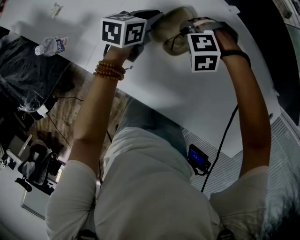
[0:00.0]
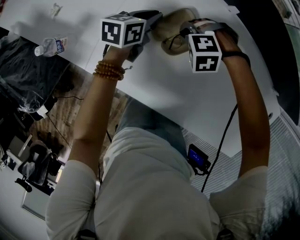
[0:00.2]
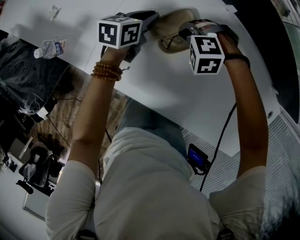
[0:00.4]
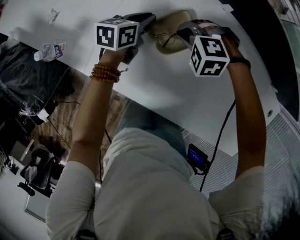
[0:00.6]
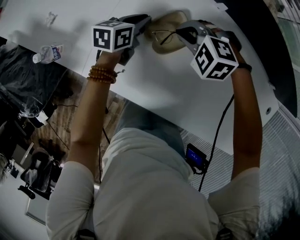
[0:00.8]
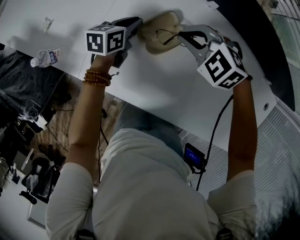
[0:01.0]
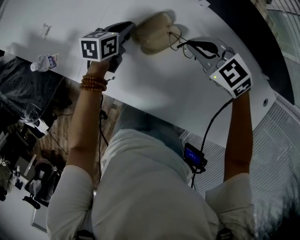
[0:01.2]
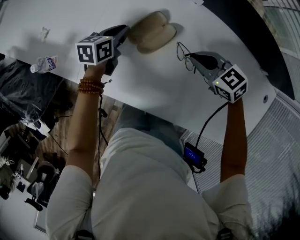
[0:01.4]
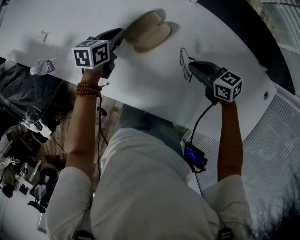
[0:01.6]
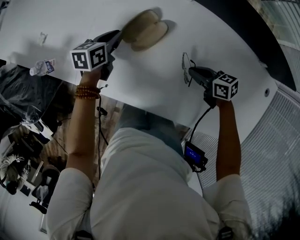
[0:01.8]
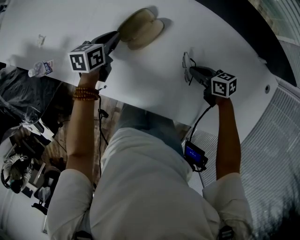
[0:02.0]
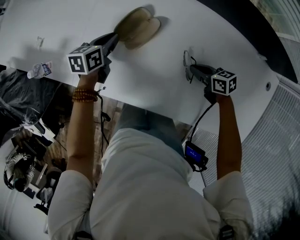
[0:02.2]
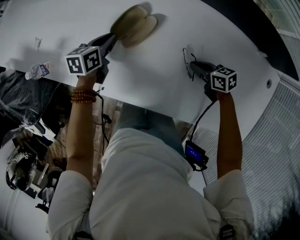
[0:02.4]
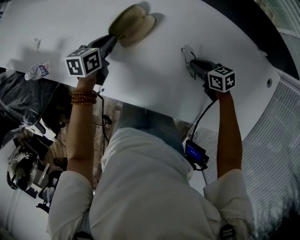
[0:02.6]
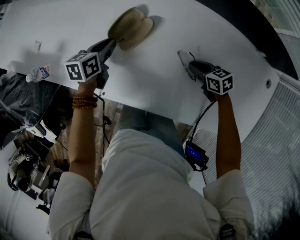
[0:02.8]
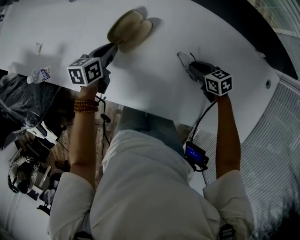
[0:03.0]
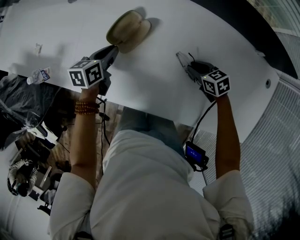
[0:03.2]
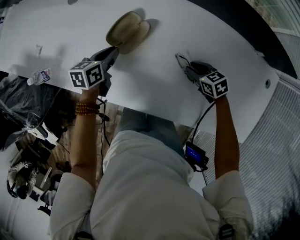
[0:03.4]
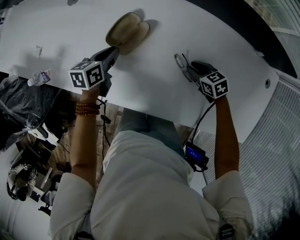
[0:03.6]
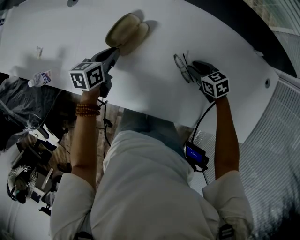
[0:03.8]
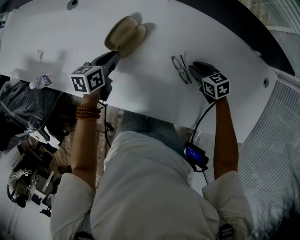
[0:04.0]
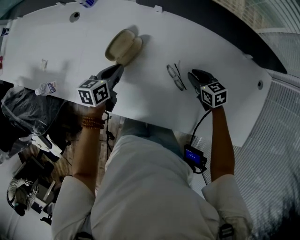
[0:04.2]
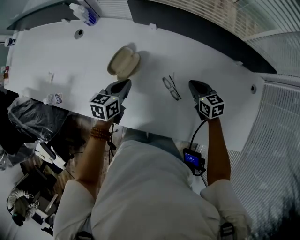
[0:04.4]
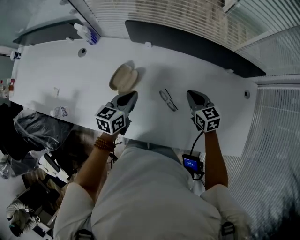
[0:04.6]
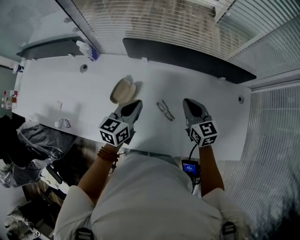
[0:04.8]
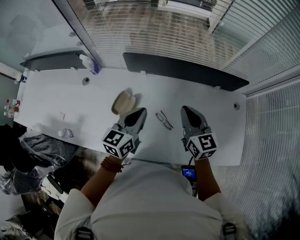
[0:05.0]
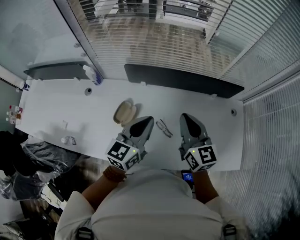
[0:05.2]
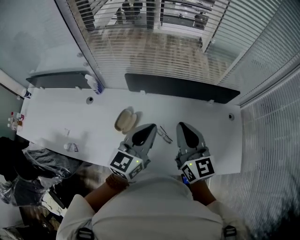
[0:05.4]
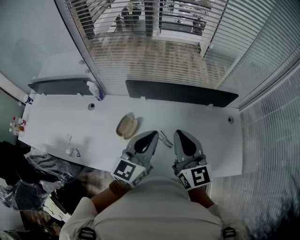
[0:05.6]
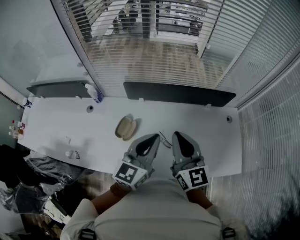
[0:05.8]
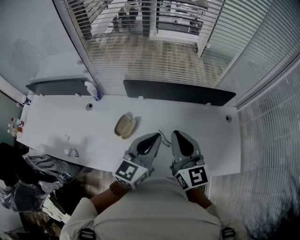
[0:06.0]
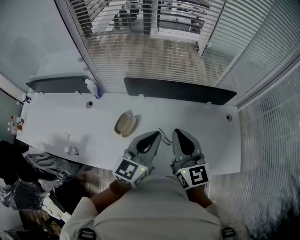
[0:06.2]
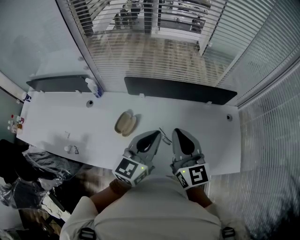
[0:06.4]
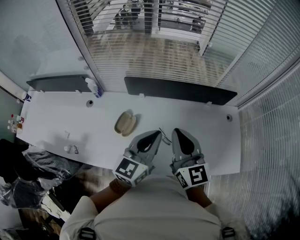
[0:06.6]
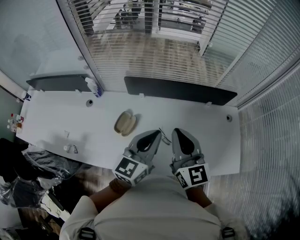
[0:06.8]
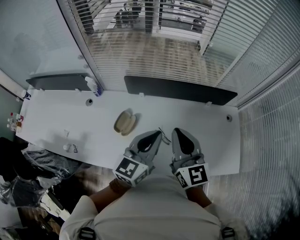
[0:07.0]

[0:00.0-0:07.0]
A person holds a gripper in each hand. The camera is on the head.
0:00.0 to 0:01.4: The right gripper moves about 20 cm, and twists some 70 degrees clockwise, seen from behind.
0:01.4 to 0:02.8: The left gripper goes some 5 cm backward; the right gripper shifts roughly 20 cm downward, backward and to the right, and changes its angle by approximately 30 degrees.
0:02.8 to 0:04.2: The right gripper shifts by about 5 cm. The left gripper ends up some 5 cm from where it was.
0:04.2 to 0:05.6: The left gripper heads upward and to the right, covering roughly 40 cm, and angles its fingers upward, by about 40 degrees; the right gripper goes about 40 cm upward, points its fingers approximately 50 degrees further upward, and closes its fingers.
0:05.6 to 0:07.0: The grippers make only small movements.

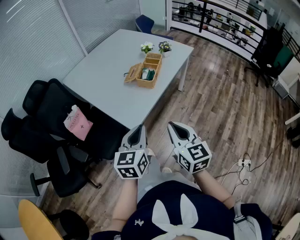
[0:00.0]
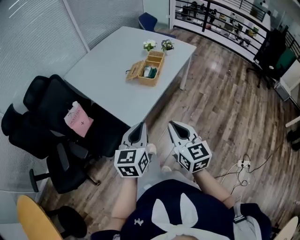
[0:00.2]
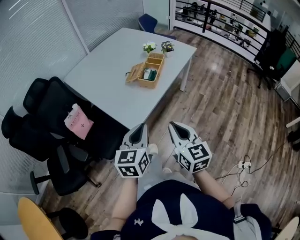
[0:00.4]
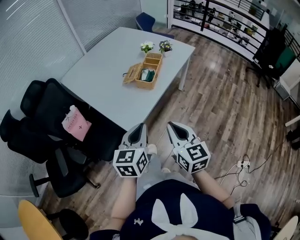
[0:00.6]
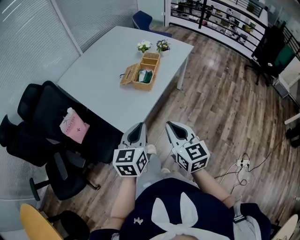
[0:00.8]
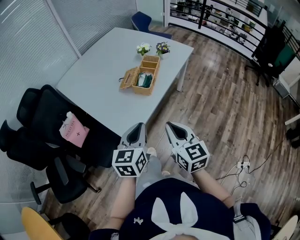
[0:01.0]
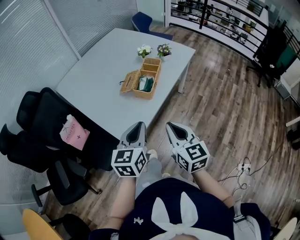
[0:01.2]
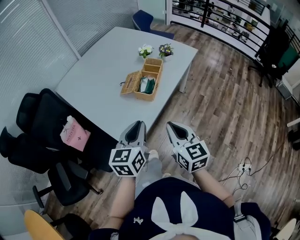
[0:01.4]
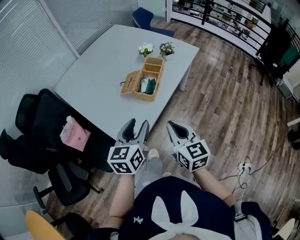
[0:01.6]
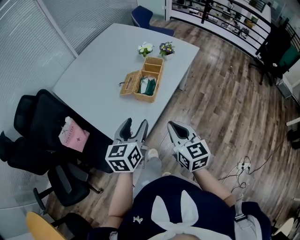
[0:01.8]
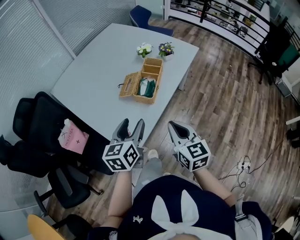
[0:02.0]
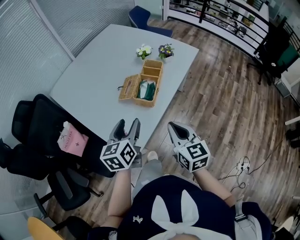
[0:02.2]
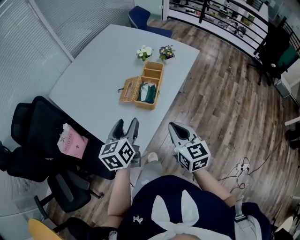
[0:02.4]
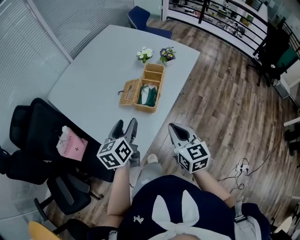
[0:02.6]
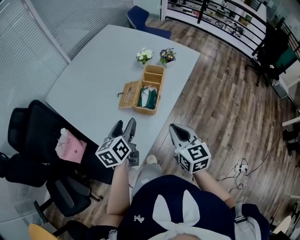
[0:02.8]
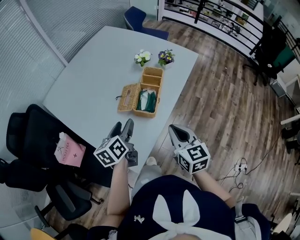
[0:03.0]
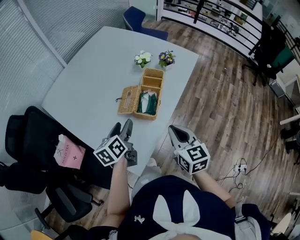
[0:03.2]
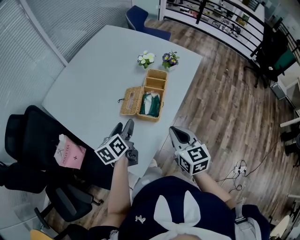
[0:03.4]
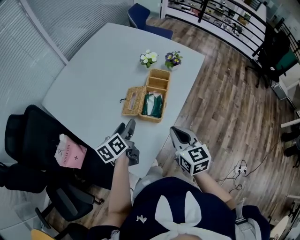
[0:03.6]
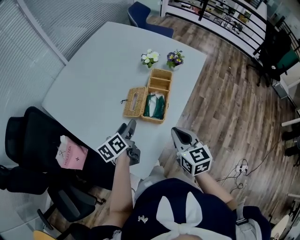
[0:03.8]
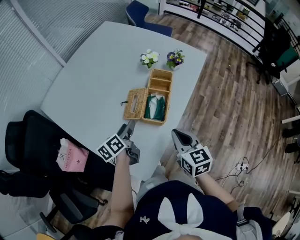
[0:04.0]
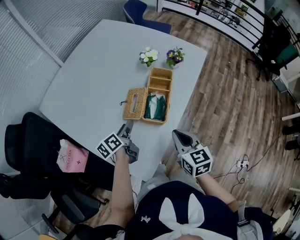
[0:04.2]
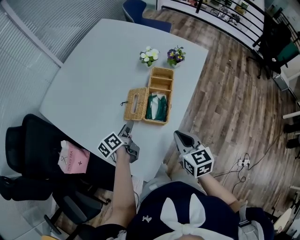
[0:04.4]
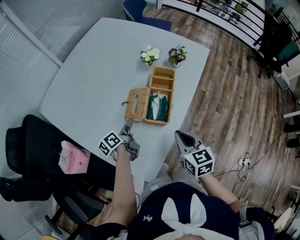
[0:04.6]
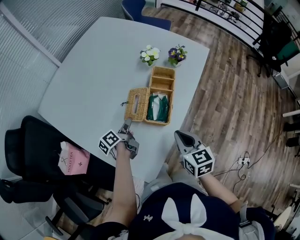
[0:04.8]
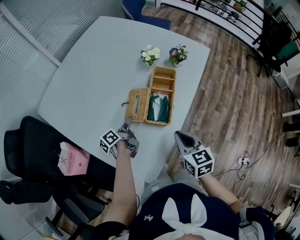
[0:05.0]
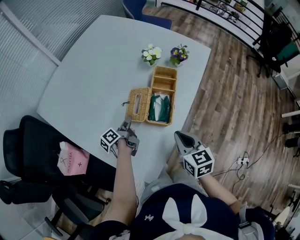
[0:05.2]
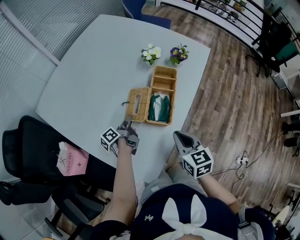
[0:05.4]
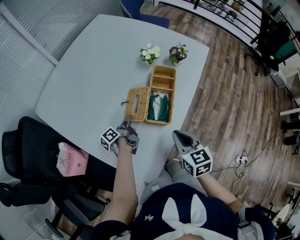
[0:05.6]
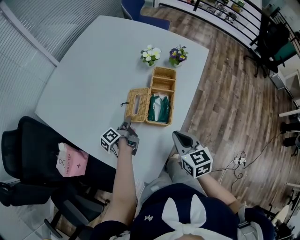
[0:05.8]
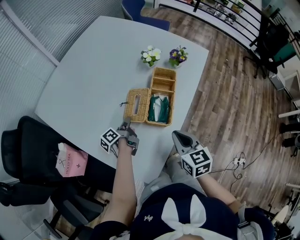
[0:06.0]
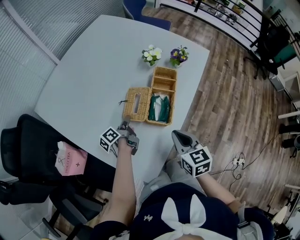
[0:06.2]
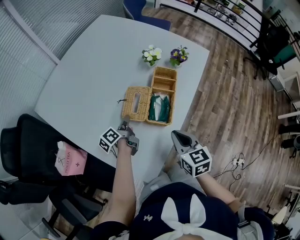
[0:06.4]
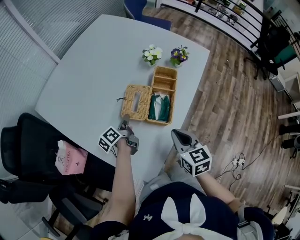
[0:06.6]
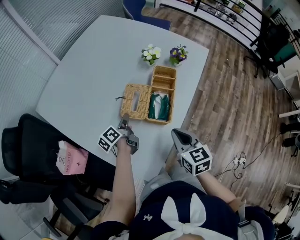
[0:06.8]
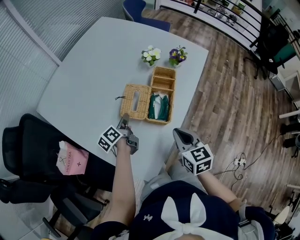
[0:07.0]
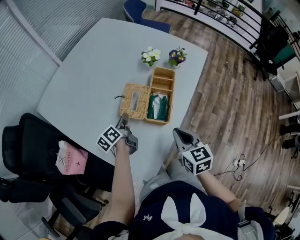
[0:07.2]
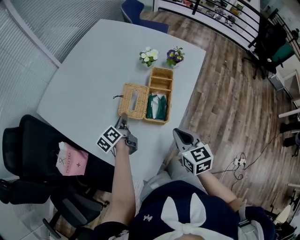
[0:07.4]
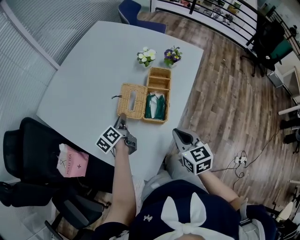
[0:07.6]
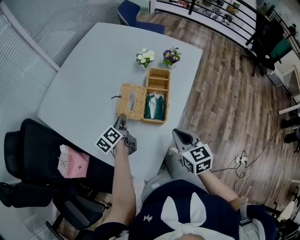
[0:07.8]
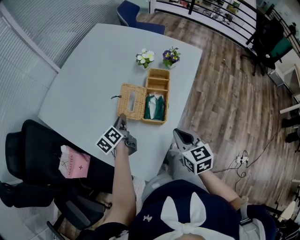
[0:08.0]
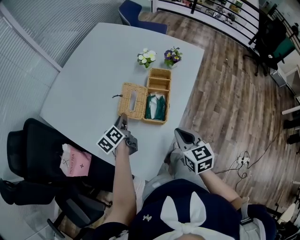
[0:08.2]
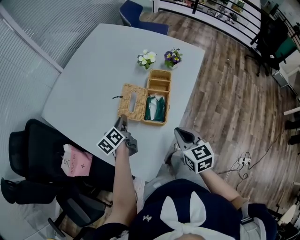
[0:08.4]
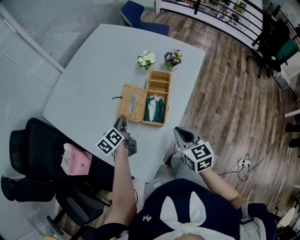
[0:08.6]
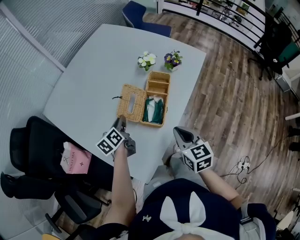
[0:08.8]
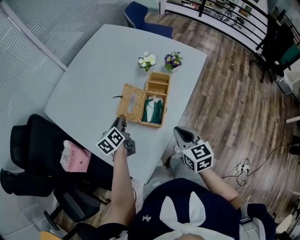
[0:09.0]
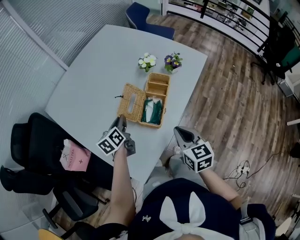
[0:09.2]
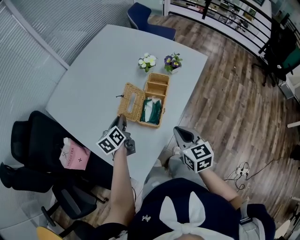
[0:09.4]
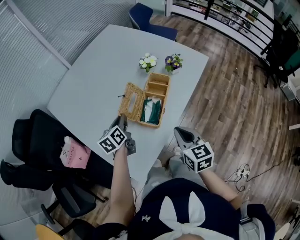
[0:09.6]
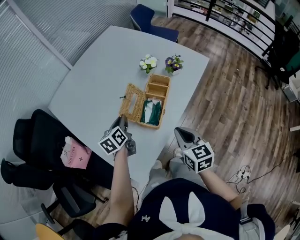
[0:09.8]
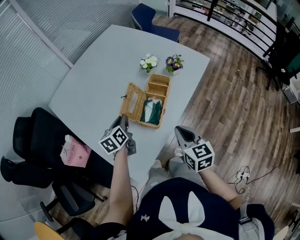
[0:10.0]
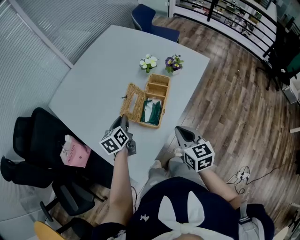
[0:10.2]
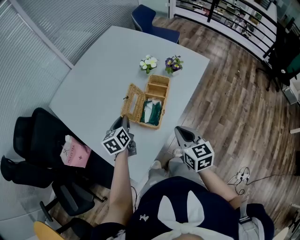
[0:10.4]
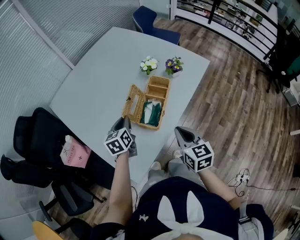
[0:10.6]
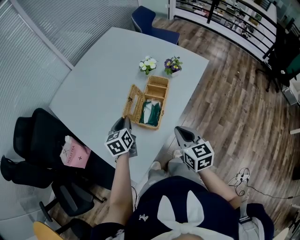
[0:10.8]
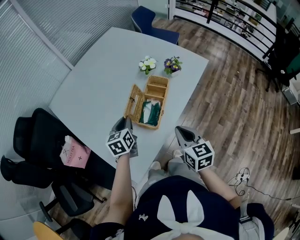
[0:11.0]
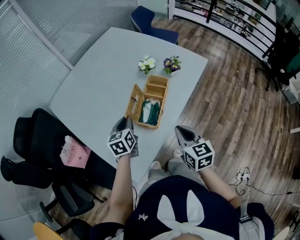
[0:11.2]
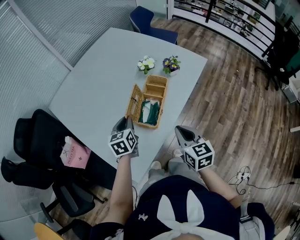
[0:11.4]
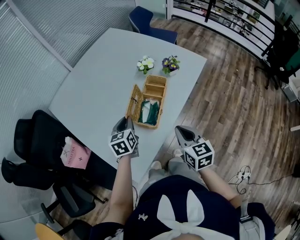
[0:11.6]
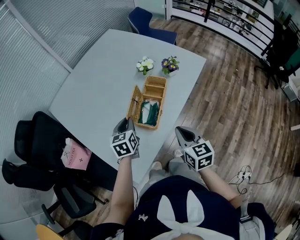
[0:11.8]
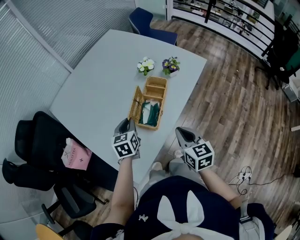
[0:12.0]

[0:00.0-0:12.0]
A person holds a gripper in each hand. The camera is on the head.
0:00.0 to 0:01.6: The grippers both shift forward by some 15 cm. The left gripper opens.
0:01.6 to 0:03.0: The left gripper shifts about 20 cm forward, to the left and downward, and turns by approximately 20 degrees. The right gripper moves forward, some 10 cm.
0:03.0 to 0:04.4: The right gripper moves downward and forward, approximately 10 cm. Meanwhile the left gripper shifts approximately 15 cm downward and forward, and rotates about 30 degrees.
0:04.4 to 0:06.0: The left gripper heads downward, covering about 5 cm, rotates some 20 degrees, and closes.
0:06.0 to 0:07.6: The left gripper travels upward by some 5 cm, and rotates approximately 30 degrees.
0:07.6 to 0:09.0: The grippers move only a little.
0:09.0 to 0:10.4: The grippers stay close to where they were, moving slightly.
0:10.4 to 0:12.0: The grippers stay close to where they were, moving slightly.

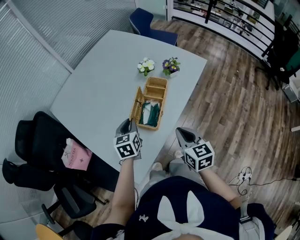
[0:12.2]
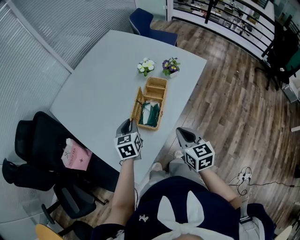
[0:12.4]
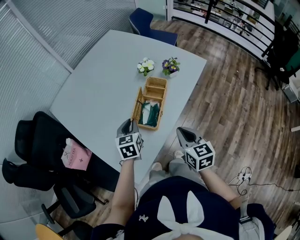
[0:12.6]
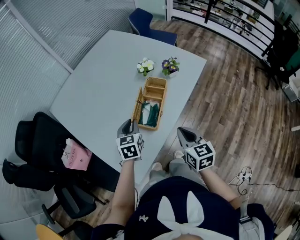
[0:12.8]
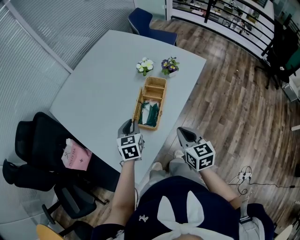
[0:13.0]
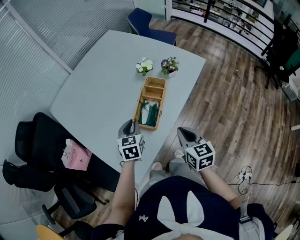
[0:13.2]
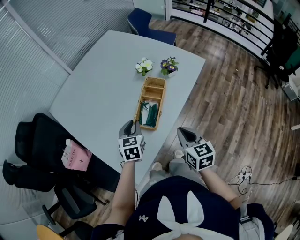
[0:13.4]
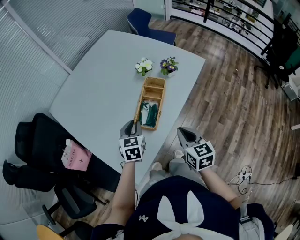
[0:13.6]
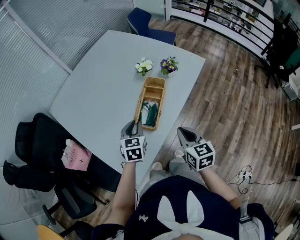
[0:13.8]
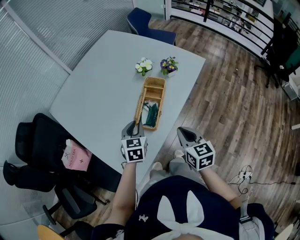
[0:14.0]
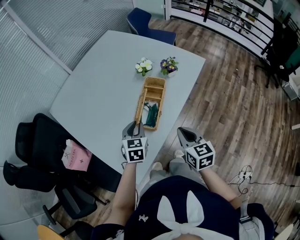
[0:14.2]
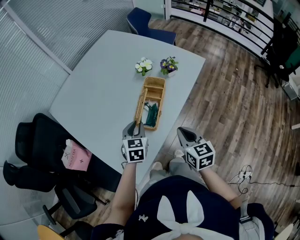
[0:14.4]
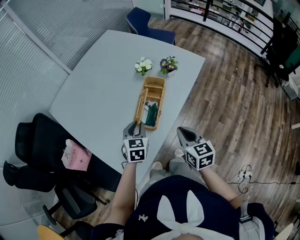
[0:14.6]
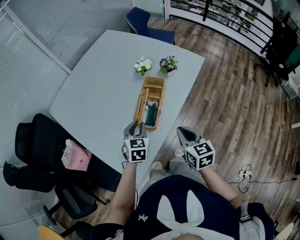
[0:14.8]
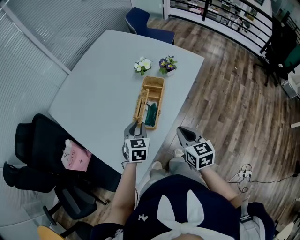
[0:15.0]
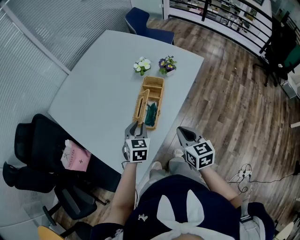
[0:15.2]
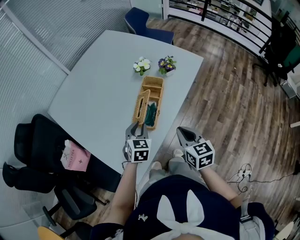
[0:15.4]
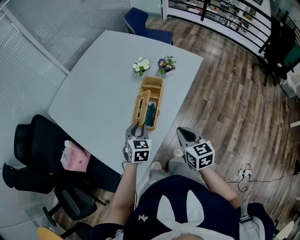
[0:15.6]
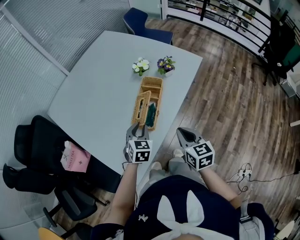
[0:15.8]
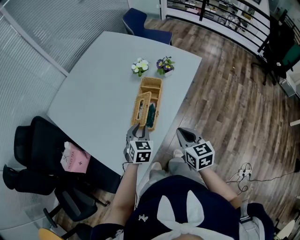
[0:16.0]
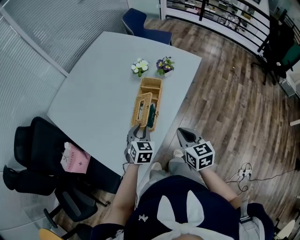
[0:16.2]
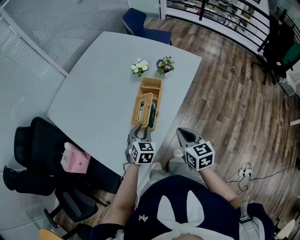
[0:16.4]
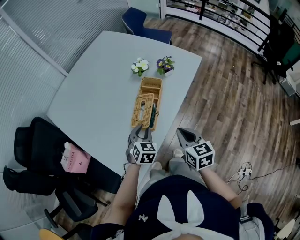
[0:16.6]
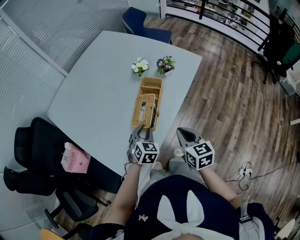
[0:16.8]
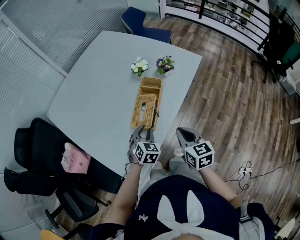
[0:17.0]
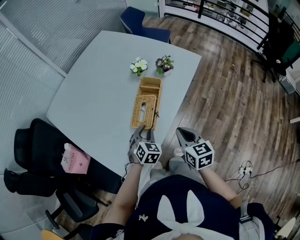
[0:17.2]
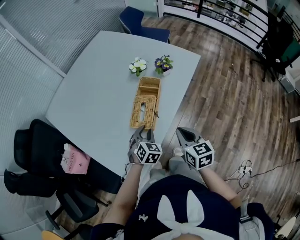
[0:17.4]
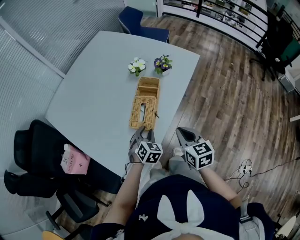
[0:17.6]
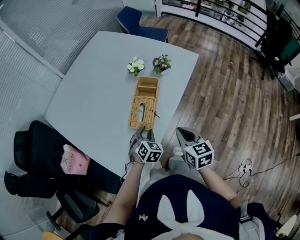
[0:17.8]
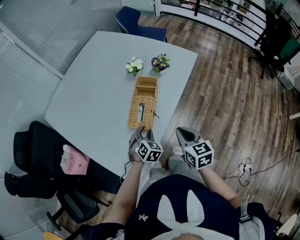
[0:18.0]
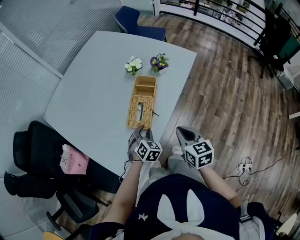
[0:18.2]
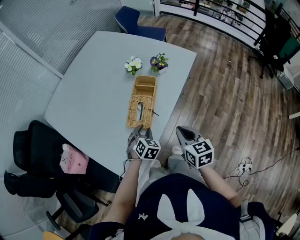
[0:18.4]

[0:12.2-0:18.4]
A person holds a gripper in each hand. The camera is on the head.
0:12.2 to 0:13.8: The grippers stay close to where they were, moving slightly.
0:13.8 to 0:15.4: The grippers move only a little.
0:15.4 to 0:16.8: The grippers stay close to where they were, moving slightly.
0:16.8 to 0:18.4: The grippers make only small movements.
